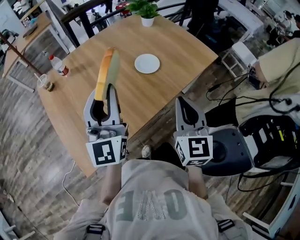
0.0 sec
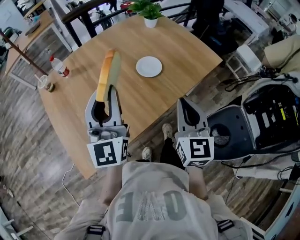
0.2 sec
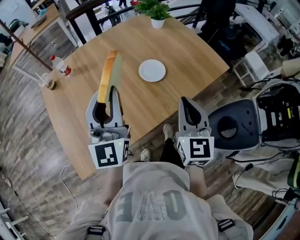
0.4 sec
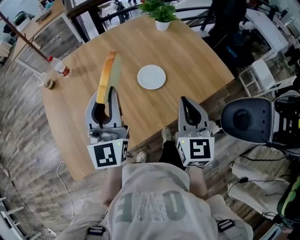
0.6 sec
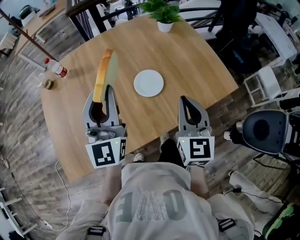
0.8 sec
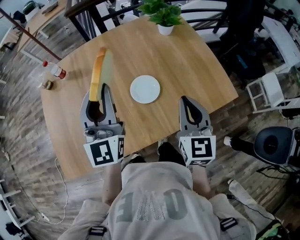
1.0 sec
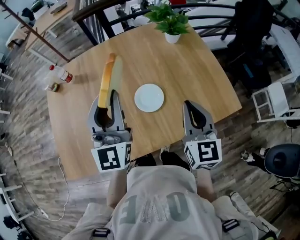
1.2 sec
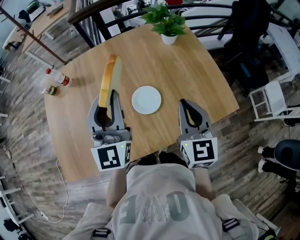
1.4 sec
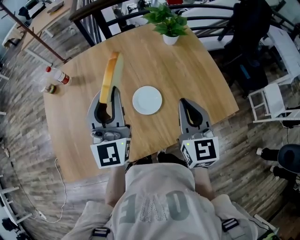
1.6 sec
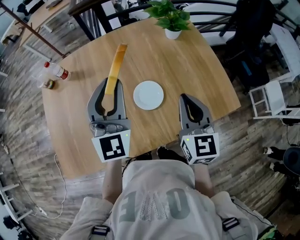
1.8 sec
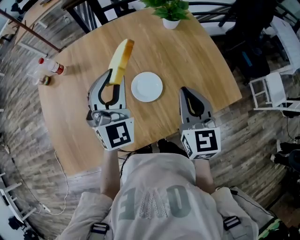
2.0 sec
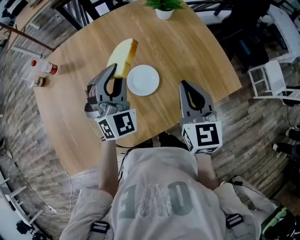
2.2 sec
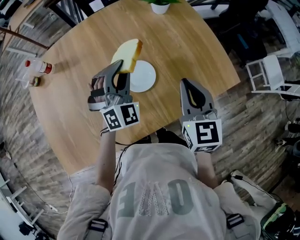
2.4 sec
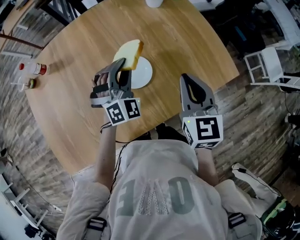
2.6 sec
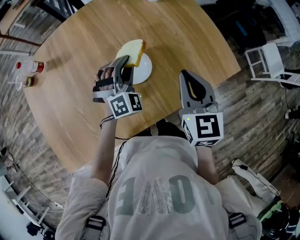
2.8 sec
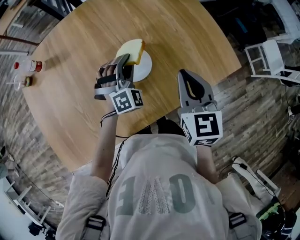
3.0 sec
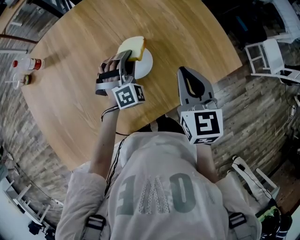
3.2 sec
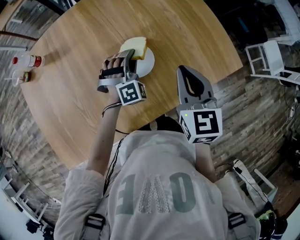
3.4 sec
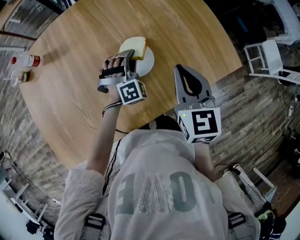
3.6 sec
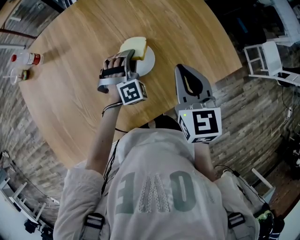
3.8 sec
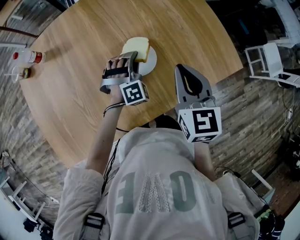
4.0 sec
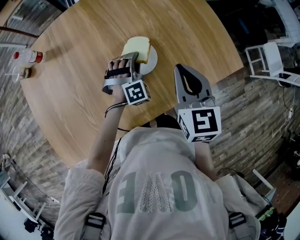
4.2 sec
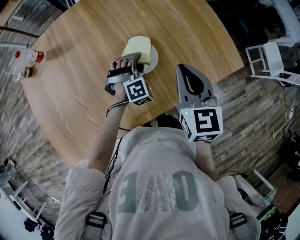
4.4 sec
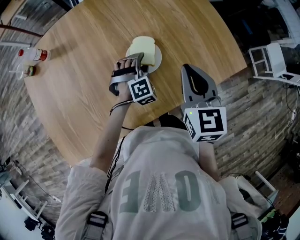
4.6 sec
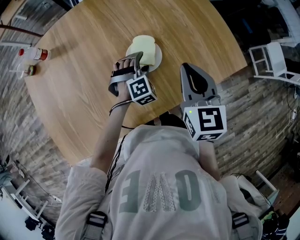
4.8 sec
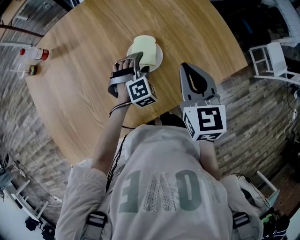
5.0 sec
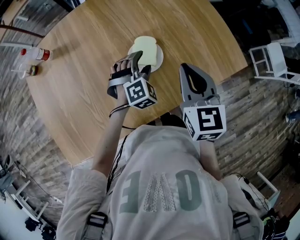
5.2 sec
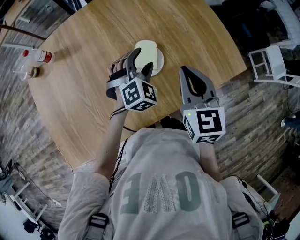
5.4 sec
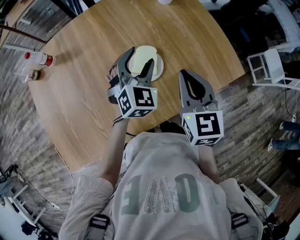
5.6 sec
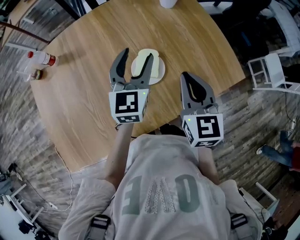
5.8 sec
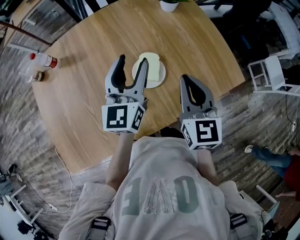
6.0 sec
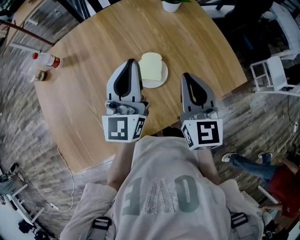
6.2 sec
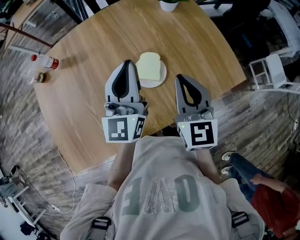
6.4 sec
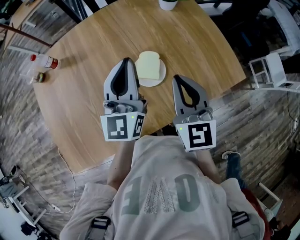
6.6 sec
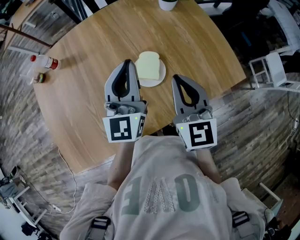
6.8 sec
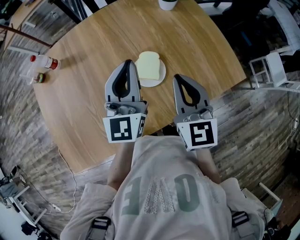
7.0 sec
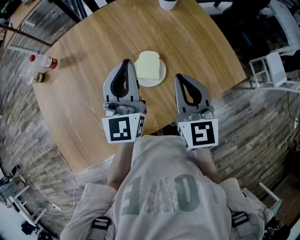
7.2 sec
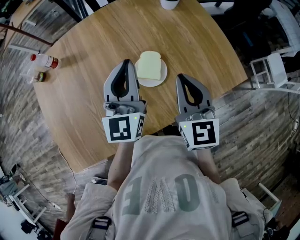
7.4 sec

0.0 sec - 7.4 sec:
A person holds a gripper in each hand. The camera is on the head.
0.0 sec - 1.4 sec: Both grippers travel together forward and to the right, about 30 cm. The right gripper changes its angle by approximately 20 degrees. Meanwhile the left gripper turns by some 20 degrees.
1.4 sec - 3.0 sec: The right gripper is displaced downward by some 5 cm, while the left gripper goes roughly 25 cm downward, and tilts its fingers about 40 degrees downward.
3.0 sec - 4.4 sec: The left gripper is displaced downward by roughly 5 cm.
4.4 sec - 6.0 sec: The left gripper shifts about 25 cm upward, rolls counterclockwise, seen from behind, by roughly 70 degrees, and opens up.
6.0 sec - 7.4 sec: The left gripper closes.

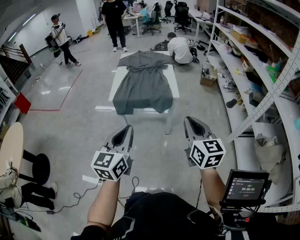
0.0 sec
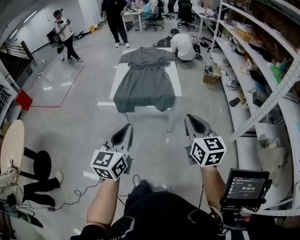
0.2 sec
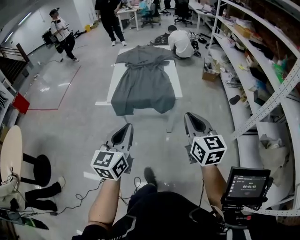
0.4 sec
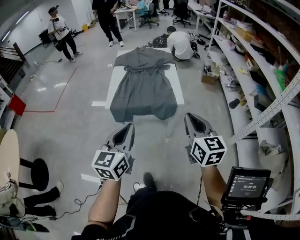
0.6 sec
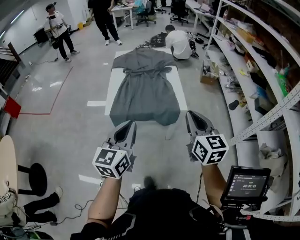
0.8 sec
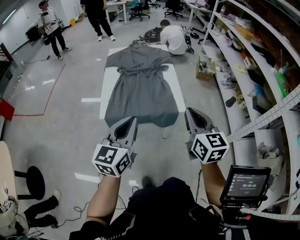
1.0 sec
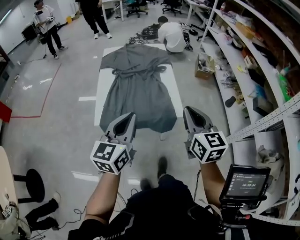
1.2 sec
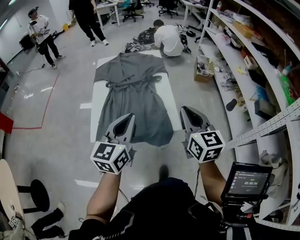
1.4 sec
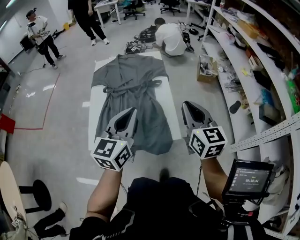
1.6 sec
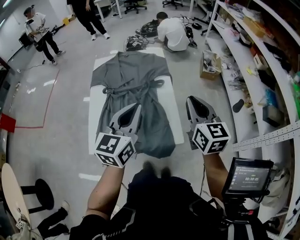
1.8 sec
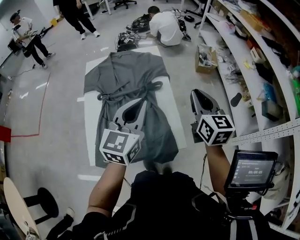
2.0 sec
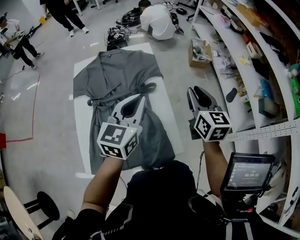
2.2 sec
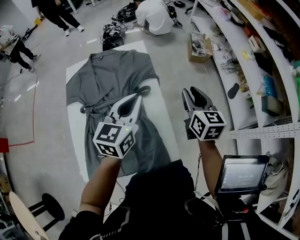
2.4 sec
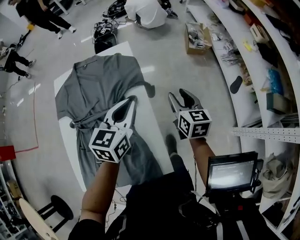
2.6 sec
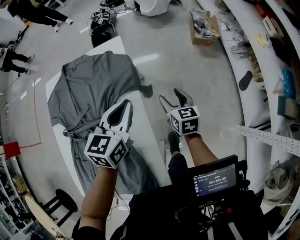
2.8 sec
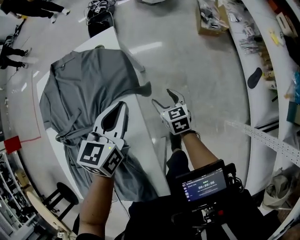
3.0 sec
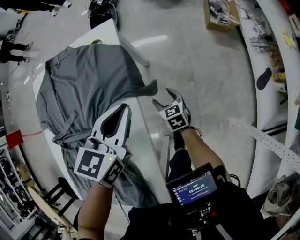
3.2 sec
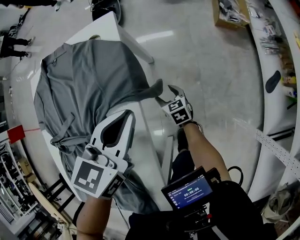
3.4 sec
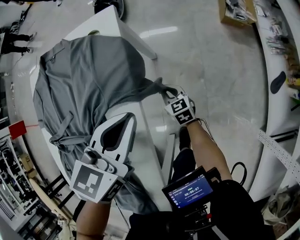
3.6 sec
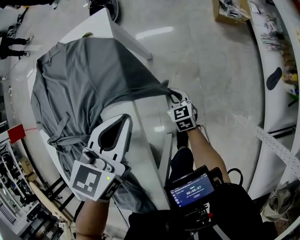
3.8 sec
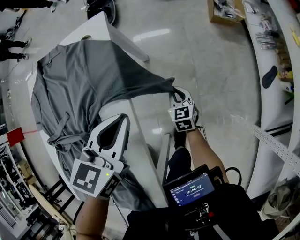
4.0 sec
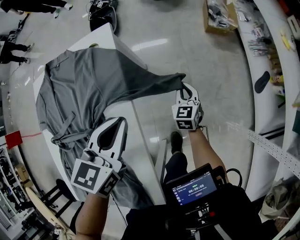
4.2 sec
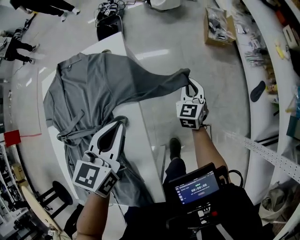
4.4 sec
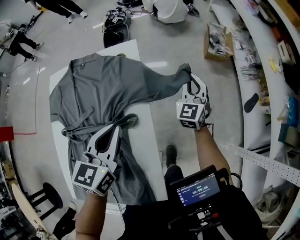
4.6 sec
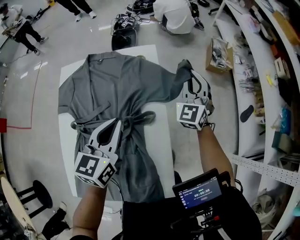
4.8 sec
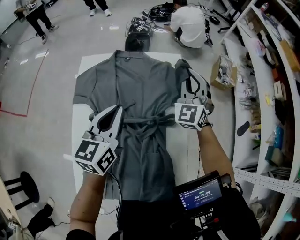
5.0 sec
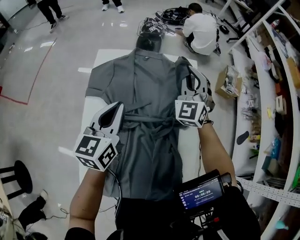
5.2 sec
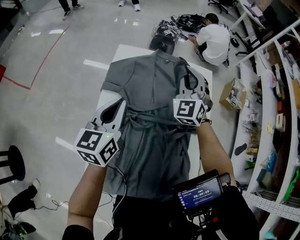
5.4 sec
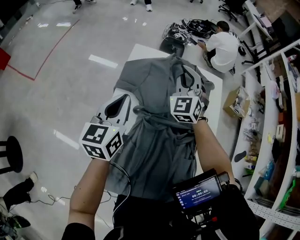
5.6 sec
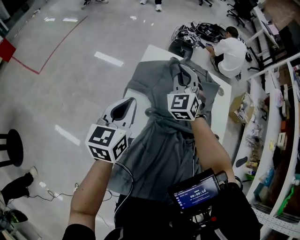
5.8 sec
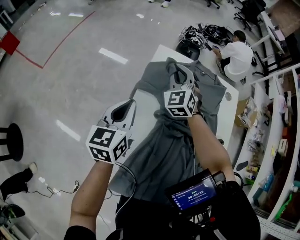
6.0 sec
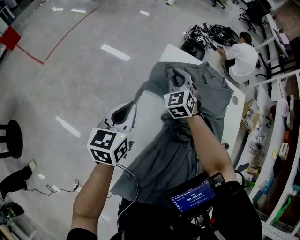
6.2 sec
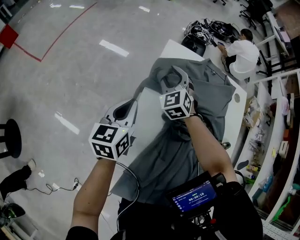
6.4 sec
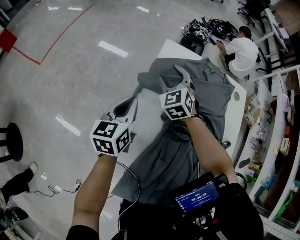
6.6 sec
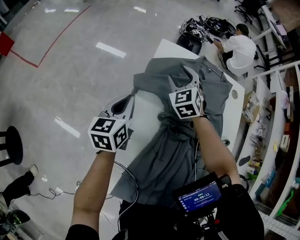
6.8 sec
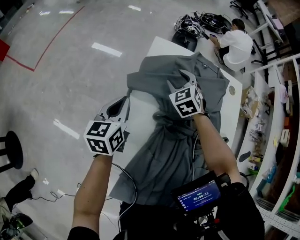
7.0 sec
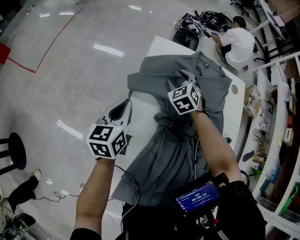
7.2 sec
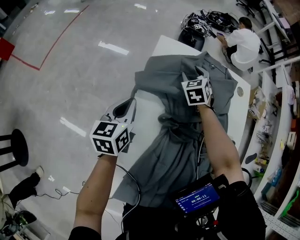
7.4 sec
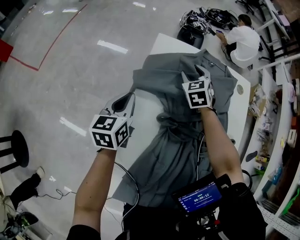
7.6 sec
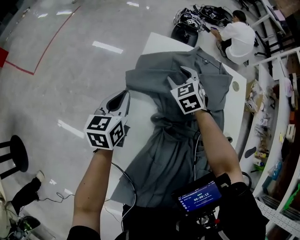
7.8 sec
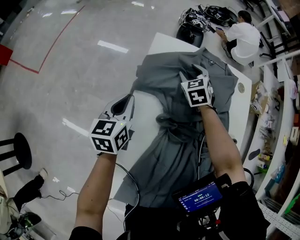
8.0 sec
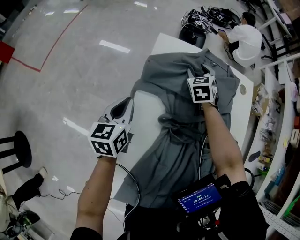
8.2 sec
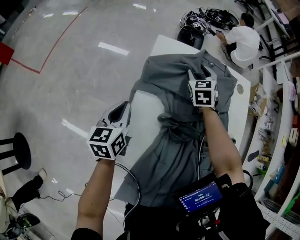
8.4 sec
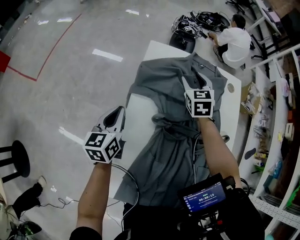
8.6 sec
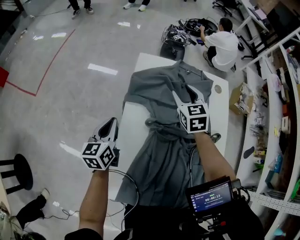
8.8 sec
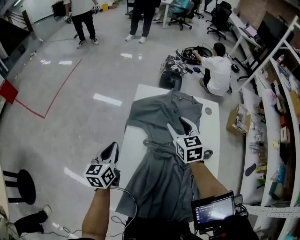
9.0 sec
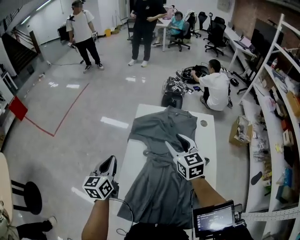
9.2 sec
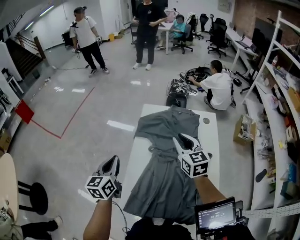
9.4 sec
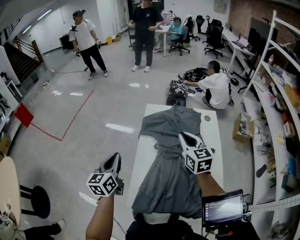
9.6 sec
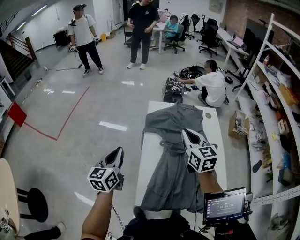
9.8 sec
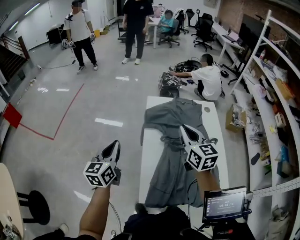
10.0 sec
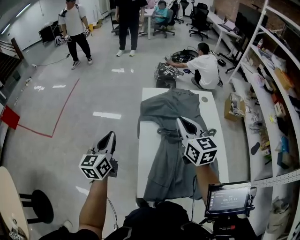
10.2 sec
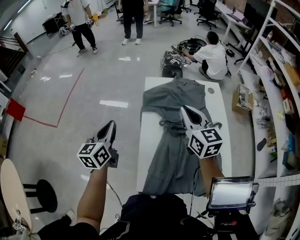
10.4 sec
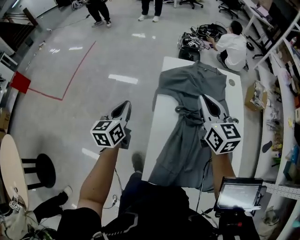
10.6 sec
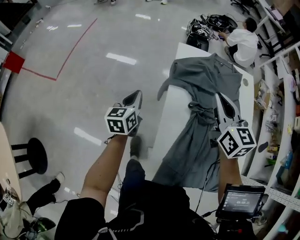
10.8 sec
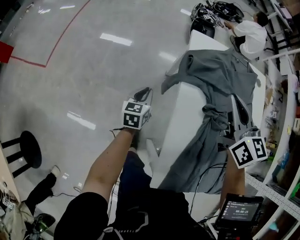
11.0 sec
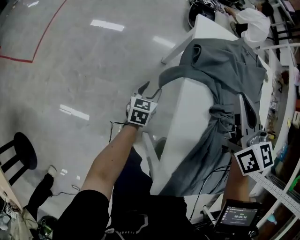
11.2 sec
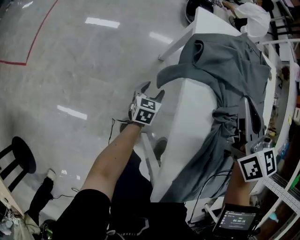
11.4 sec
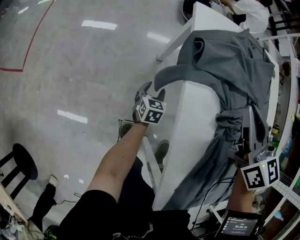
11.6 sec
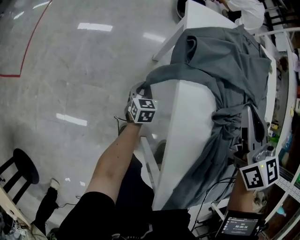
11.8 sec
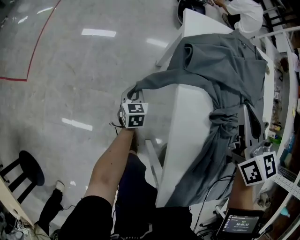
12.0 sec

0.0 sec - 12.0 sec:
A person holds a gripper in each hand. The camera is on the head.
0.0 sec - 1.6 sec: Both grippers are carried forward, some 50 cm.
1.6 sec - 3.0 sec: The right gripper shifts roughly 60 cm downward and forward, changes its angle by about 30 degrees, and opens up, while the left gripper is displaced forward and downward by approximately 50 cm, and turns by roughly 30 degrees.
3.0 sec - 4.4 sec: The right gripper heads to the right and forward, covering roughly 15 cm, reaches roughly 15 cm downward, then returns, turns by approximately 30 degrees, and closes. Meanwhile the left gripper goes downward and returns, roughly 5 cm each way.
4.4 sec - 6.0 sec: Both grippers are carried approximately 60 cm. The right gripper turns by roughly 50 degrees. Meanwhile the left gripper turns by some 30 degrees.
6.0 sec - 7.6 sec: The left gripper is displaced downward and forward by about 10 cm, while the right gripper travels downward and to the right by some 15 cm, rotates approximately 30 degrees, and opens its fingers.
7.6 sec - 9.0 sec: The right gripper is displaced upward and backward by approximately 20 cm, and changes its angle by roughly 30 degrees; the left gripper heads backward and upward, covering about 15 cm.
9.0 sec - 10.4 sec: The left gripper travels upward and to the left by approximately 15 cm, while the right gripper travels upward and backward by roughly 20 cm, swivels roughly 20 degrees, and closes up.
10.4 sec - 12.0 sec: The right gripper shifts approximately 20 cm downward and forward. Meanwhile the left gripper goes some 50 cm downward, rotates roughly 30 degrees, and opens and closes again.

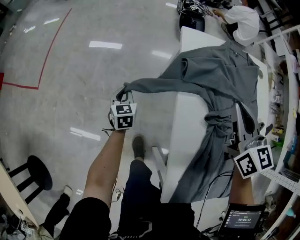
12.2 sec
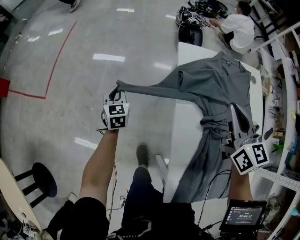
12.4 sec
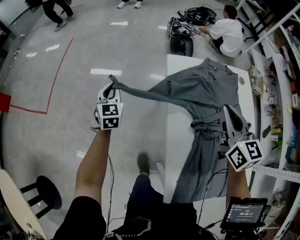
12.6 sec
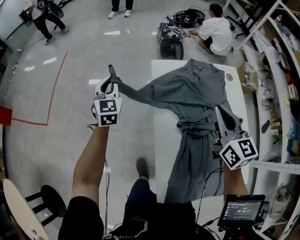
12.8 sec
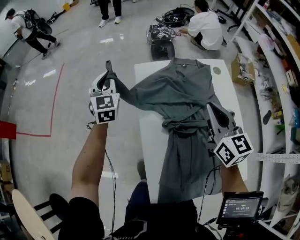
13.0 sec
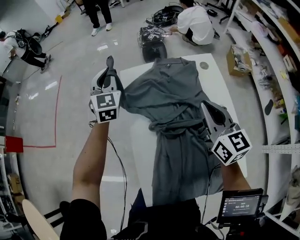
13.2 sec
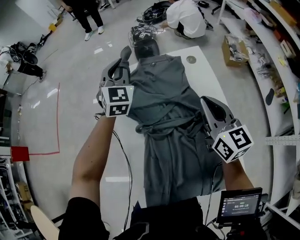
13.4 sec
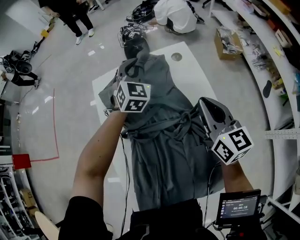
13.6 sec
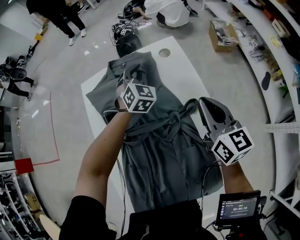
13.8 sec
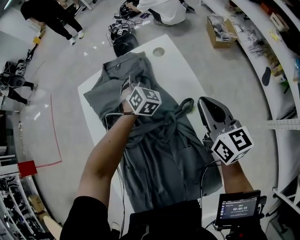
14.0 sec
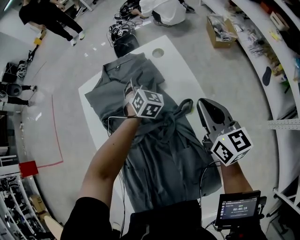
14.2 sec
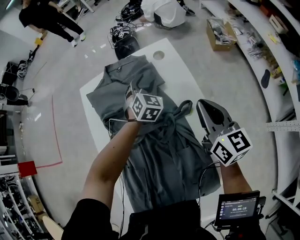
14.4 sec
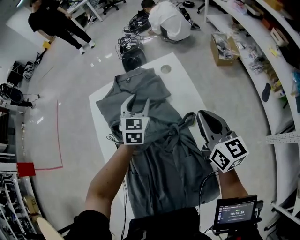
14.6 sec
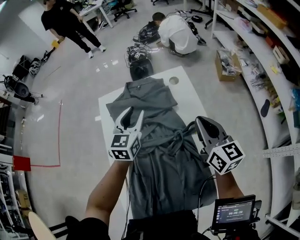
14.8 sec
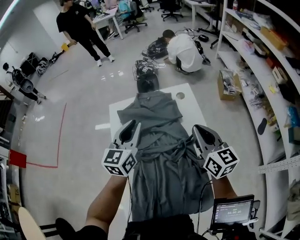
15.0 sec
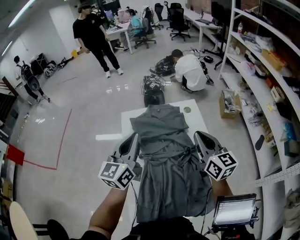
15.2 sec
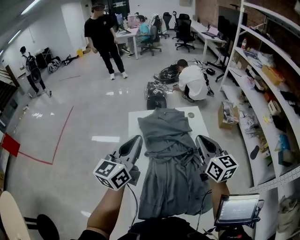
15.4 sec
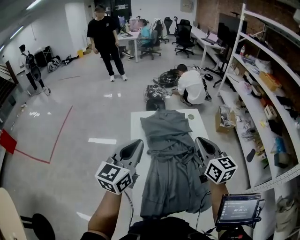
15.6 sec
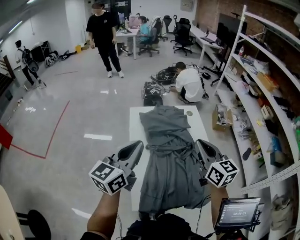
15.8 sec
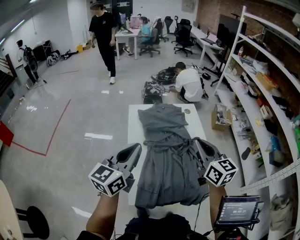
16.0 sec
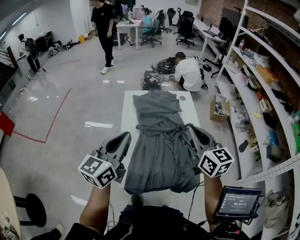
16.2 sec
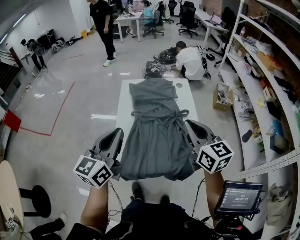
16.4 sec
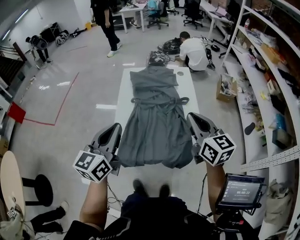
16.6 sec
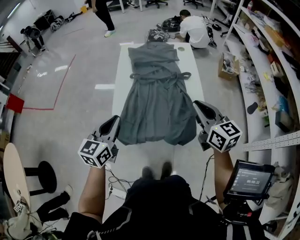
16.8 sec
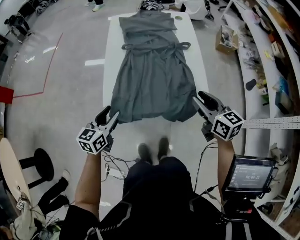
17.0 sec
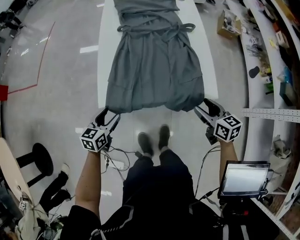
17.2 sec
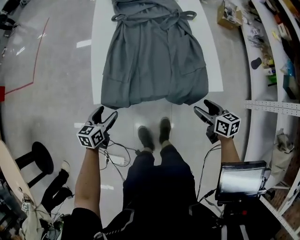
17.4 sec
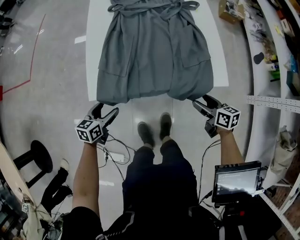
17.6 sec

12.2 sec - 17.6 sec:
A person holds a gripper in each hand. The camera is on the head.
12.2 sec - 13.6 sec: The left gripper moves to the right and upward, approximately 60 cm, and rolls clockwise, seen from behind, by some 50 degrees, while the right gripper goes roughly 30 cm to the right.
13.6 sec - 15.0 sec: The left gripper moves backward and upward, approximately 20 cm, and twists approximately 40 degrees counterclockwise, seen from behind. Meanwhile the right gripper travels upward by approximately 5 cm.
15.0 sec - 16.2 sec: The left gripper goes roughly 30 cm backward. Meanwhile the right gripper heads backward and upward, covering roughly 25 cm.
16.2 sec - 17.6 sec: The right gripper heads downward and backward, covering approximately 50 cm, changes its angle by roughly 50 degrees, and opens. The left gripper shifts roughly 50 cm downward, angles its fingers downward, by roughly 40 degrees, and opens.
